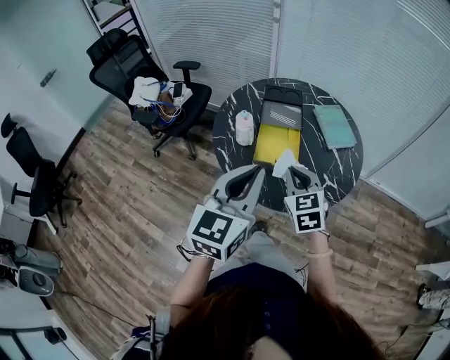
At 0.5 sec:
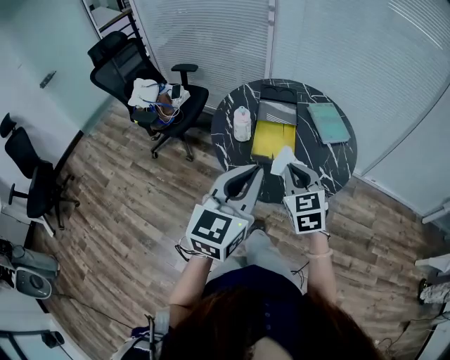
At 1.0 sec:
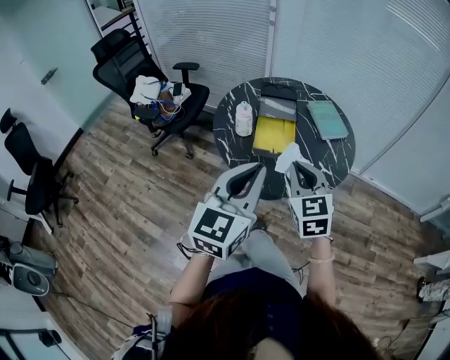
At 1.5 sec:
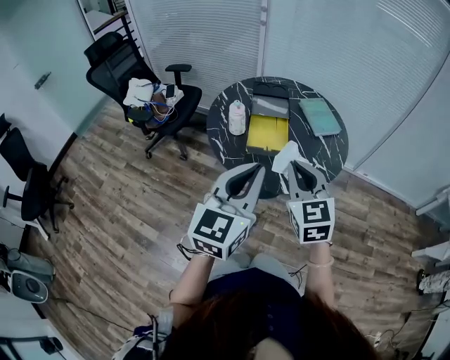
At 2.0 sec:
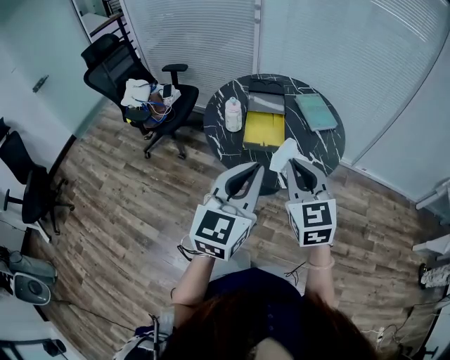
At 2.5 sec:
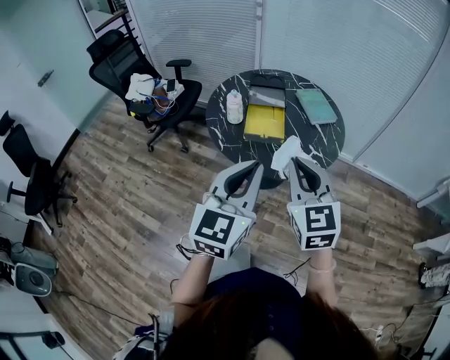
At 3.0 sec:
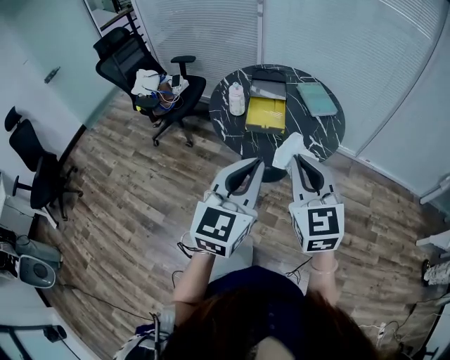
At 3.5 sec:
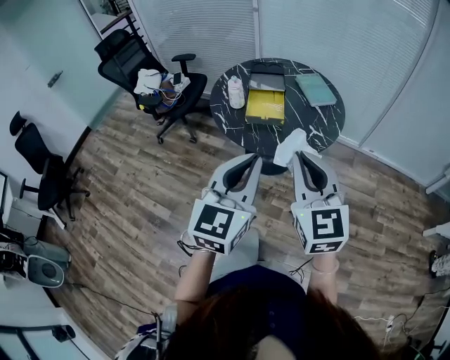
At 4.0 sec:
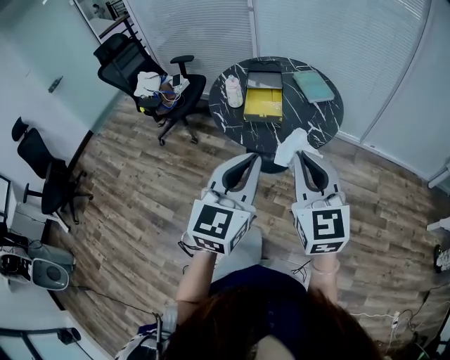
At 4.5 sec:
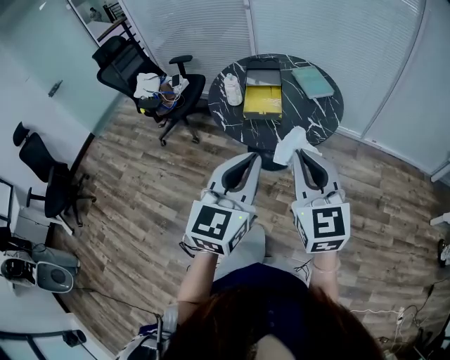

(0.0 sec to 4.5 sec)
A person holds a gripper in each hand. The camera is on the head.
0.0 sec - 2.0 sec: The right gripper travels backward and upward by about 20 cm, while the left gripper goes some 10 cm backward.
2.0 sec - 4.5 sec: Both grippers travel together backward, about 15 cm.

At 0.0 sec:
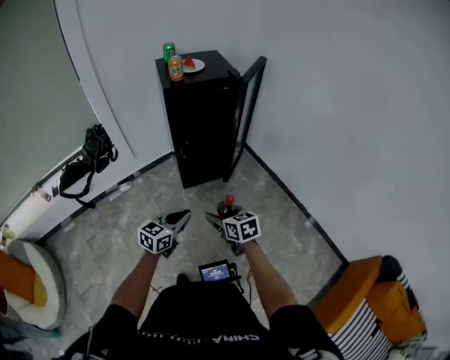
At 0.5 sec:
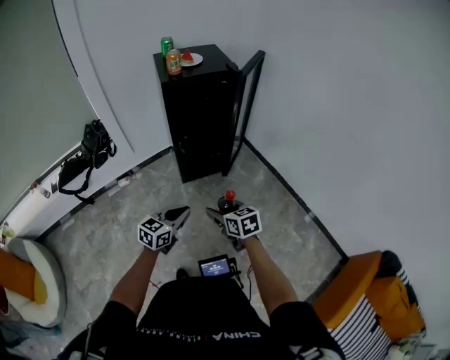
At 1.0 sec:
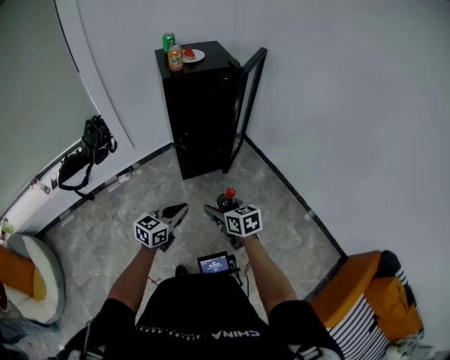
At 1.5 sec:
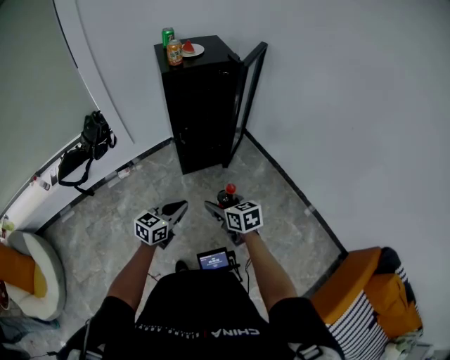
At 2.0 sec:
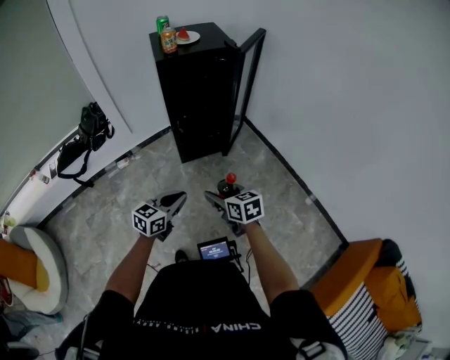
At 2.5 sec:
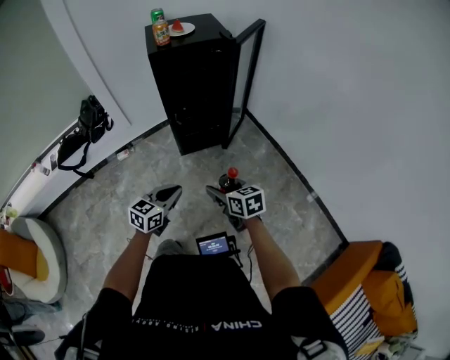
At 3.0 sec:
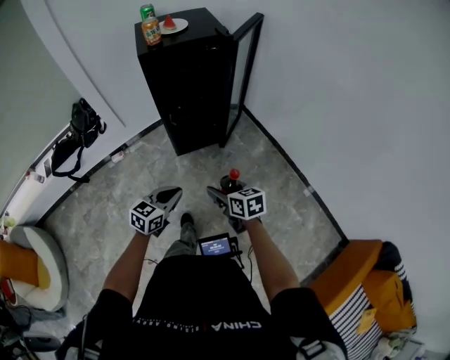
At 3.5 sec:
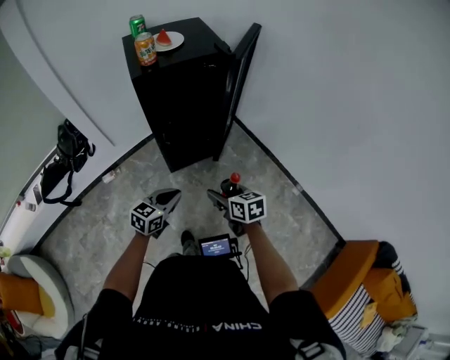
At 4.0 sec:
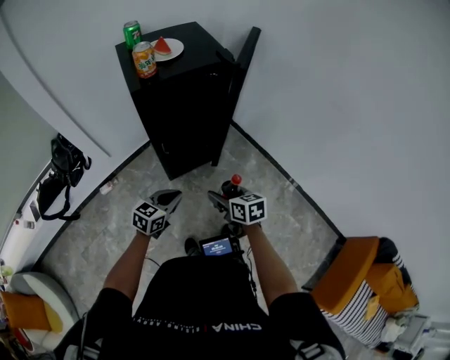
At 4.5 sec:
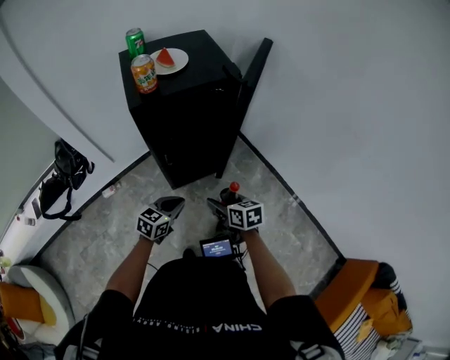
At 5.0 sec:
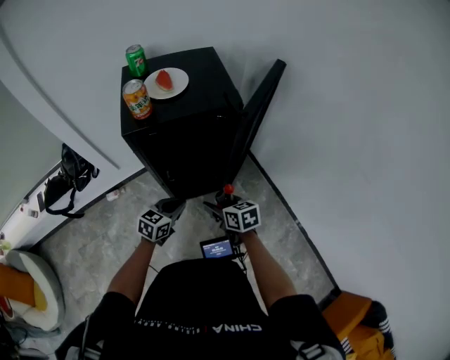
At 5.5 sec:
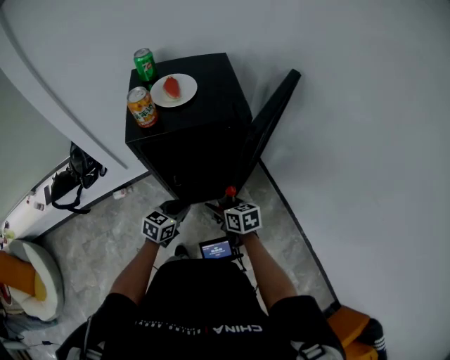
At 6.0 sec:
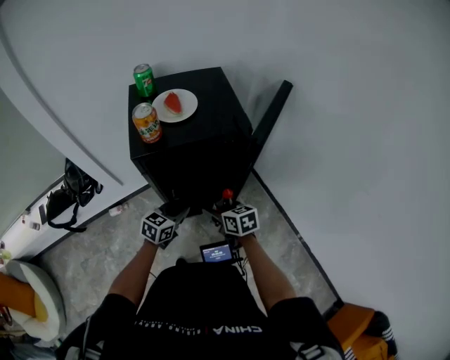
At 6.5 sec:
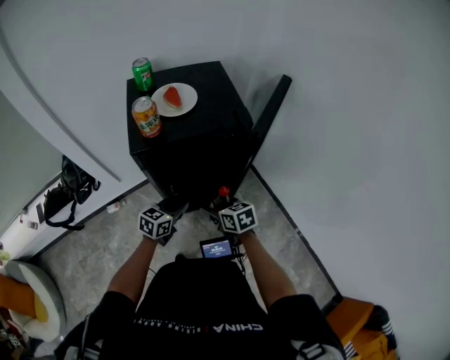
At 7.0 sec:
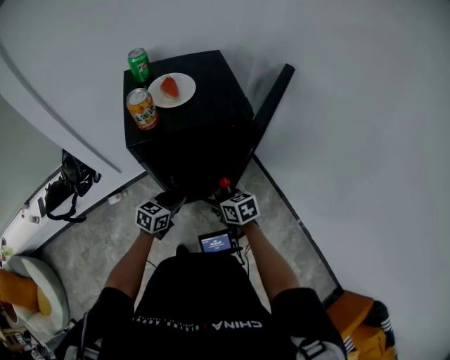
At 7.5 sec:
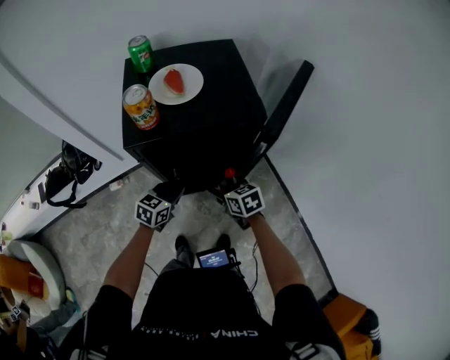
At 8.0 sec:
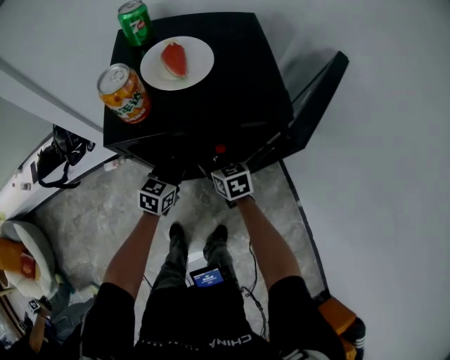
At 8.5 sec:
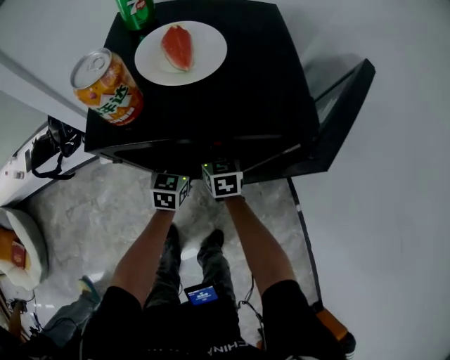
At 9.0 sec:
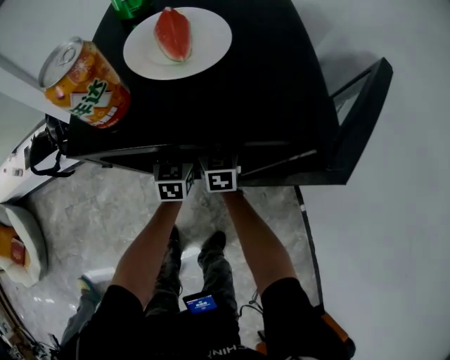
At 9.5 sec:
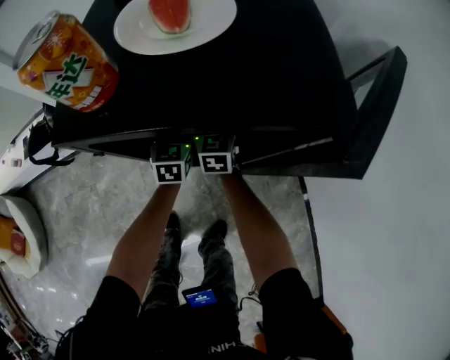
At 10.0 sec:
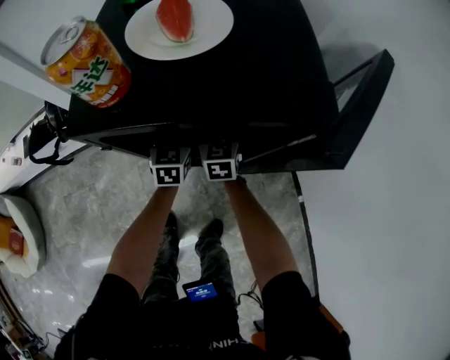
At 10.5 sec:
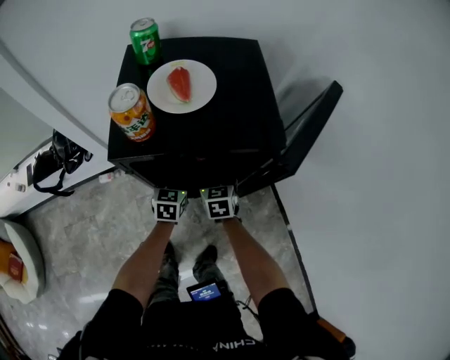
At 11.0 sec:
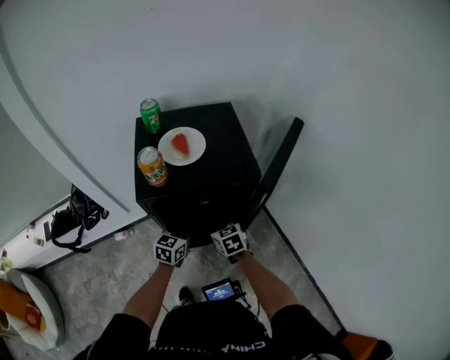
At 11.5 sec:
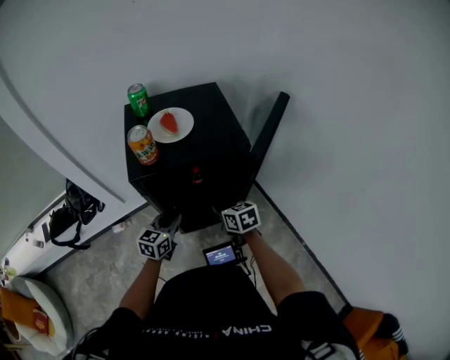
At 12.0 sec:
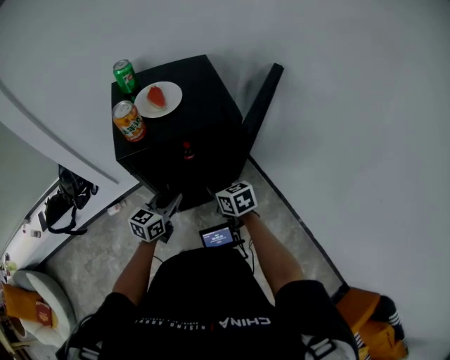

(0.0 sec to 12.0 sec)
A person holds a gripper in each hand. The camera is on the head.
0.0 sec - 2.0 sec: The grippers move only a little.
2.0 sec - 4.0 sec: The two grippers go about 25 cm forward.
4.0 sec - 6.0 sec: The grippers both shift forward by about 20 cm.
6.0 sec - 8.0 sec: Both grippers move forward and downward, about 15 cm.
8.0 sec - 10.0 sec: The right gripper shifts about 10 cm forward; the left gripper moves forward and downward, approximately 10 cm, and changes its angle by some 30 degrees.
10.0 sec - 12.0 sec: The two grippers go roughly 25 cm backward and upward. The left gripper turns by roughly 40 degrees; the right gripper changes its angle by approximately 20 degrees, and closes.

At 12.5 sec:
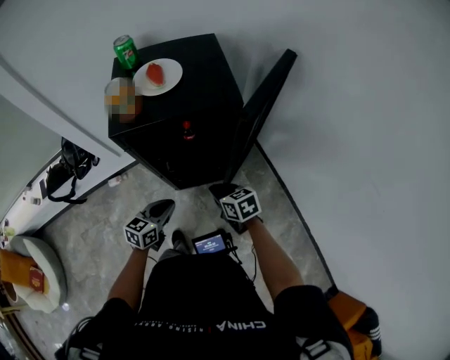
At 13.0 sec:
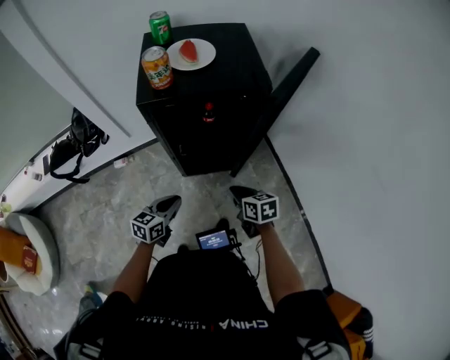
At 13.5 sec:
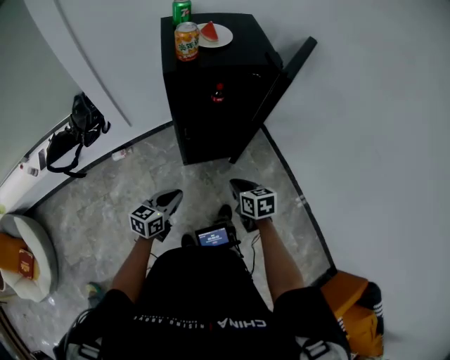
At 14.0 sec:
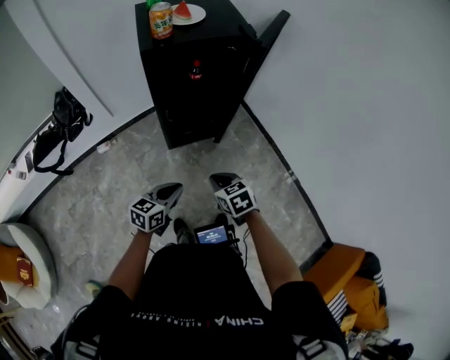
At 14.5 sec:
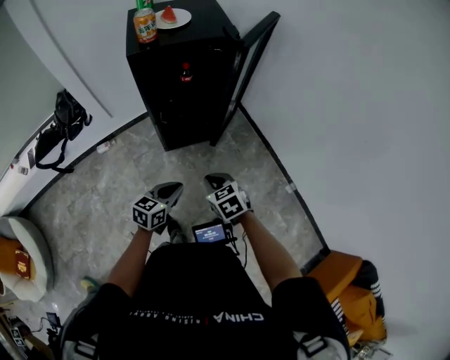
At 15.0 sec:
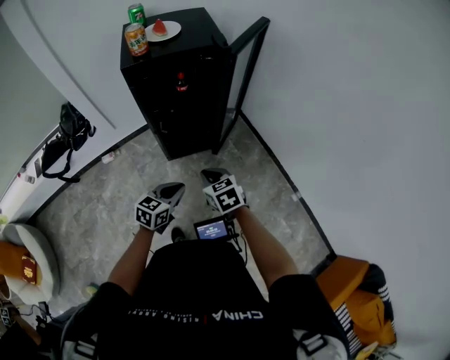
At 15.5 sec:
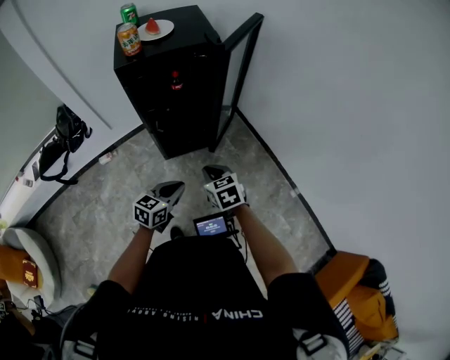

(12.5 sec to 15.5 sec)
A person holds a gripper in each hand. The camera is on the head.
12.5 sec - 14.0 sec: Both grippers travel together backward, approximately 25 cm.
14.0 sec - 15.5 sec: The two grippers go roughly 10 cm to the right.

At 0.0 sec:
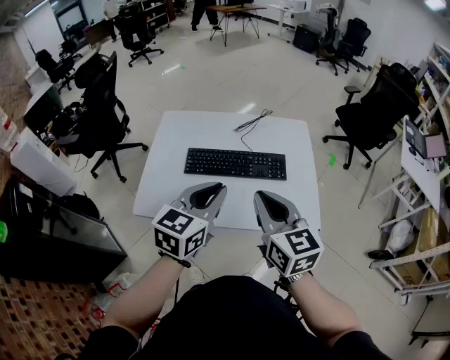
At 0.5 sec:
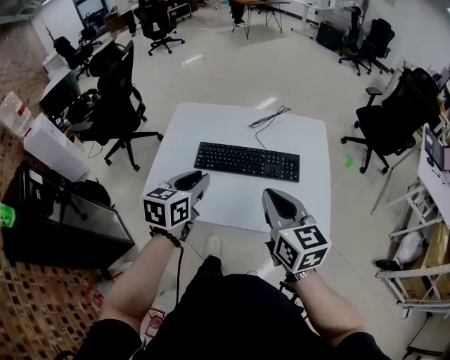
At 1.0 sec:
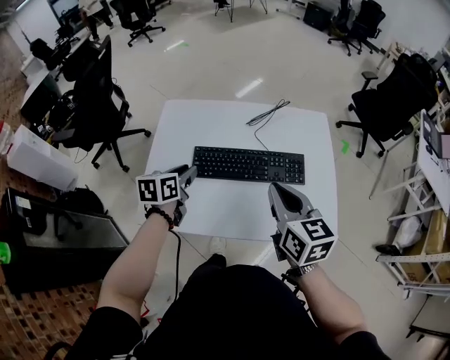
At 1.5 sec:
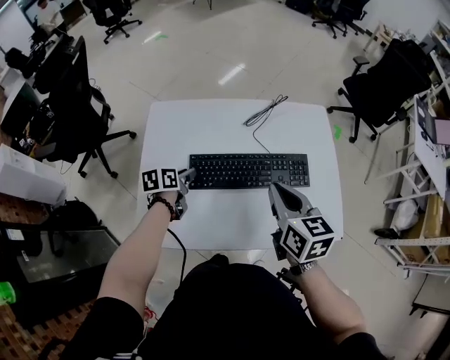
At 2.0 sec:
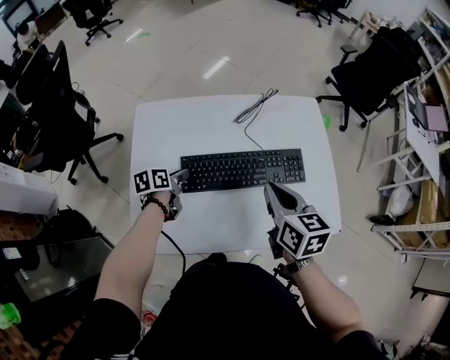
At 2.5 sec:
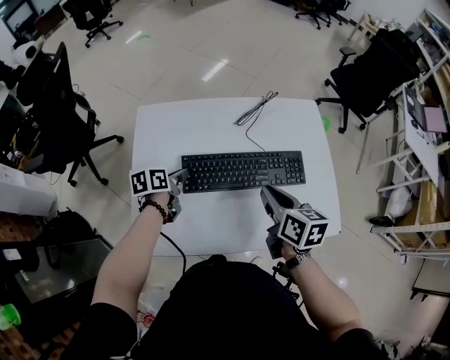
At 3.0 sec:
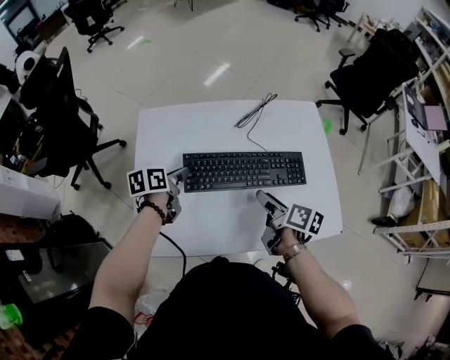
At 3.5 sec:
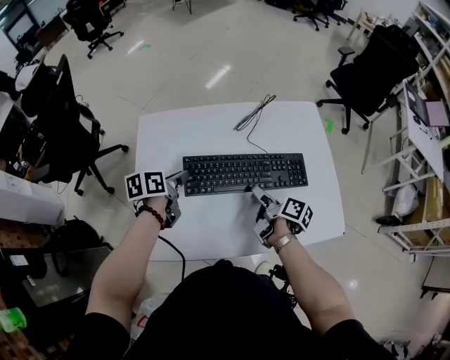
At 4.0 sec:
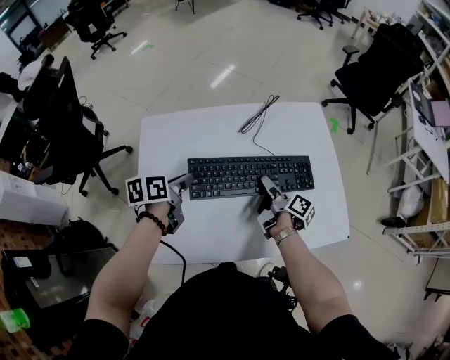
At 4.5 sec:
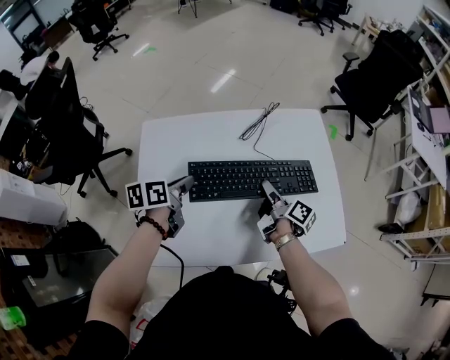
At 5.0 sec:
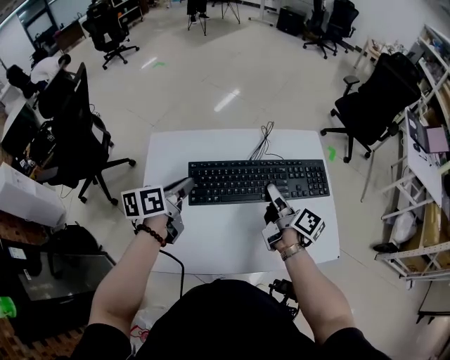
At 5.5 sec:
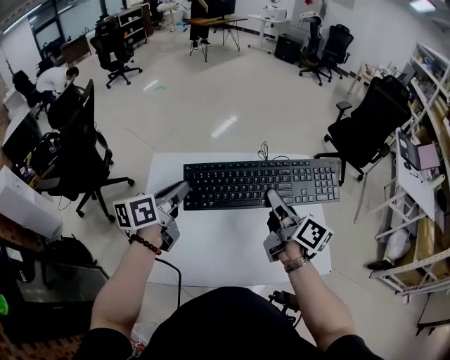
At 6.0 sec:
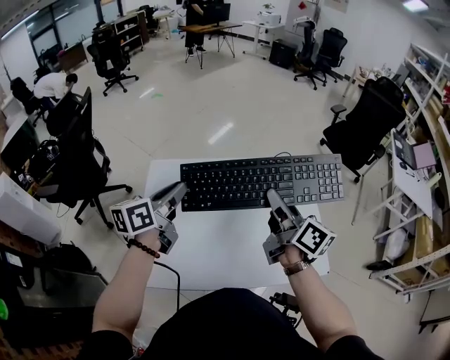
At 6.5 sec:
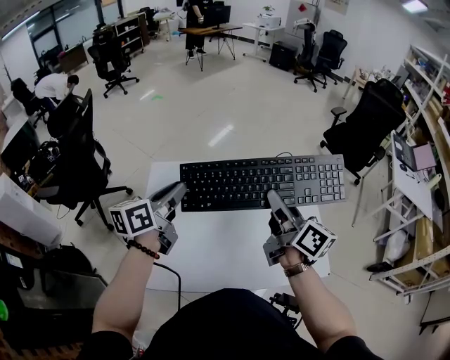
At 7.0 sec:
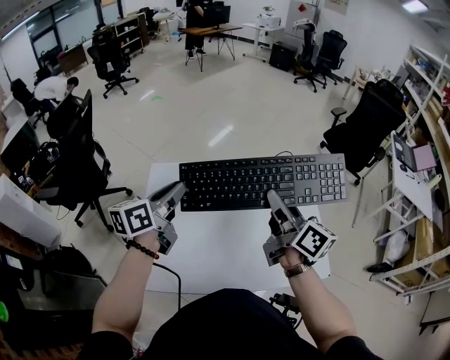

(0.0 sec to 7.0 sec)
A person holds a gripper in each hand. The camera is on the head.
0.0 sec - 2.0 sec: The right gripper is displaced forward and downward by roughly 20 cm, and swivels some 30 degrees; the left gripper travels downward, forward and to the left by about 40 cm, rotates around the line of its fingers by approximately 40 degrees, counterclockwise from behind, and opens up.
2.0 sec - 3.5 sec: The right gripper travels downward by roughly 15 cm, twists approximately 50 degrees clockwise, seen from behind, and opens. Meanwhile the left gripper is displaced upward by approximately 10 cm.
3.5 sec - 5.0 sec: The left gripper shifts some 10 cm upward. Meanwhile the right gripper is displaced upward and forward by some 15 cm, rotates roughly 20 degrees, and closes.
5.0 sec - 7.0 sec: Both grippers travel together upward, roughly 15 cm. The right gripper swivels approximately 30 degrees.
